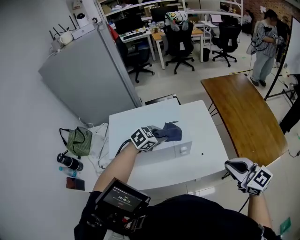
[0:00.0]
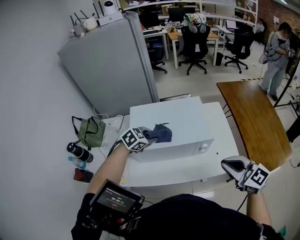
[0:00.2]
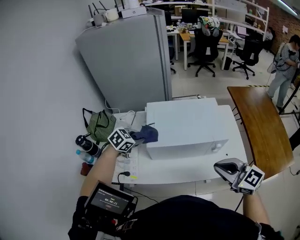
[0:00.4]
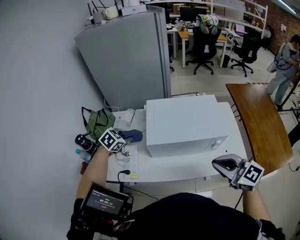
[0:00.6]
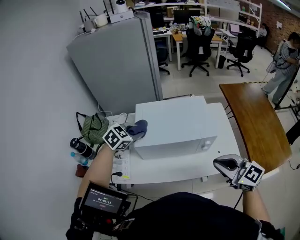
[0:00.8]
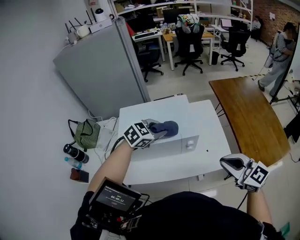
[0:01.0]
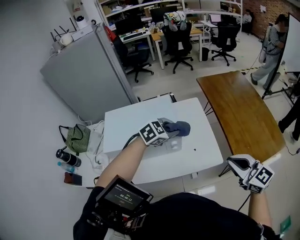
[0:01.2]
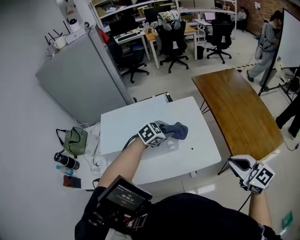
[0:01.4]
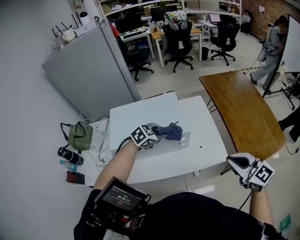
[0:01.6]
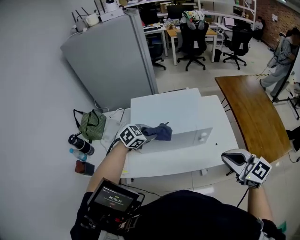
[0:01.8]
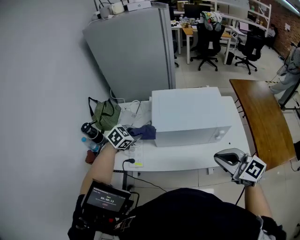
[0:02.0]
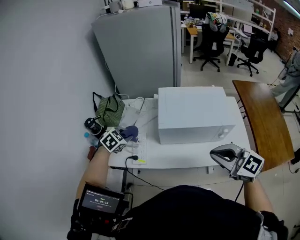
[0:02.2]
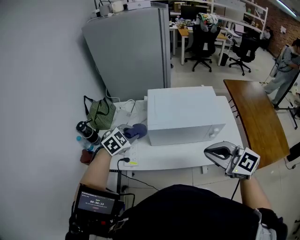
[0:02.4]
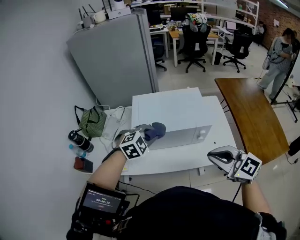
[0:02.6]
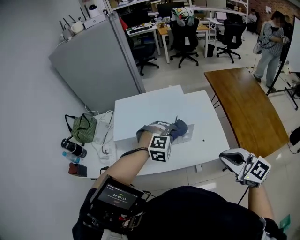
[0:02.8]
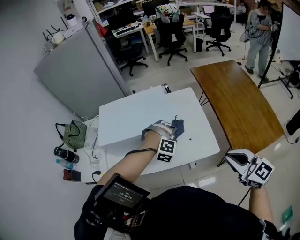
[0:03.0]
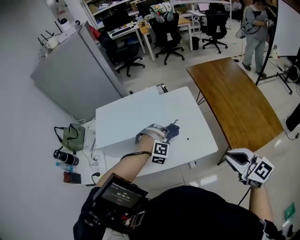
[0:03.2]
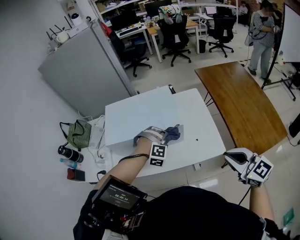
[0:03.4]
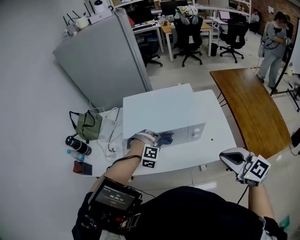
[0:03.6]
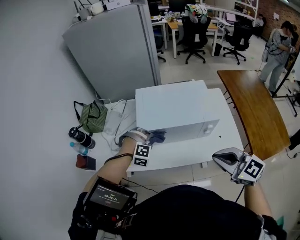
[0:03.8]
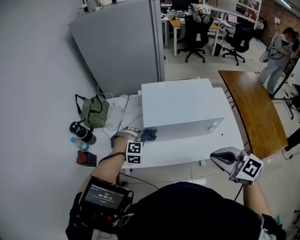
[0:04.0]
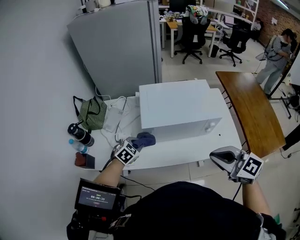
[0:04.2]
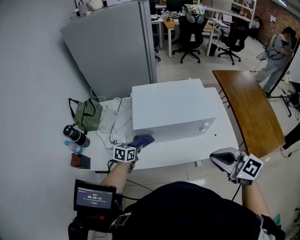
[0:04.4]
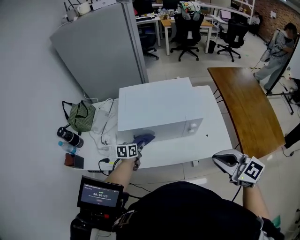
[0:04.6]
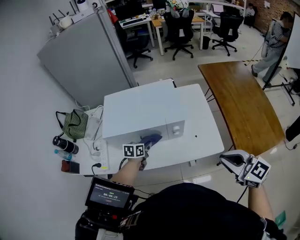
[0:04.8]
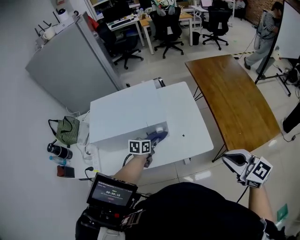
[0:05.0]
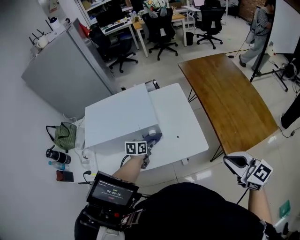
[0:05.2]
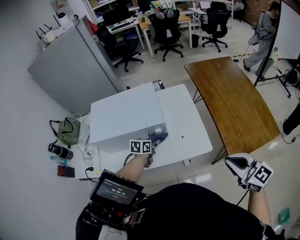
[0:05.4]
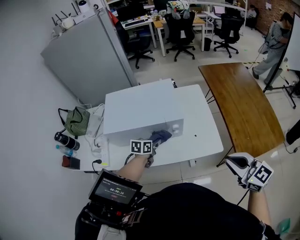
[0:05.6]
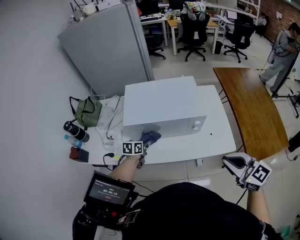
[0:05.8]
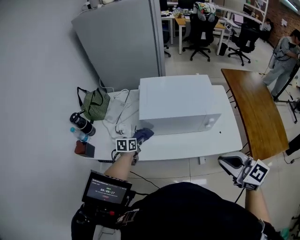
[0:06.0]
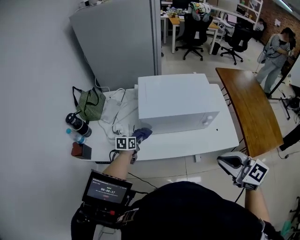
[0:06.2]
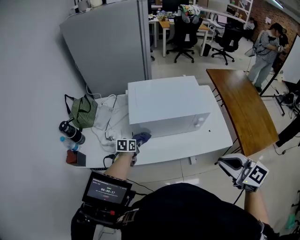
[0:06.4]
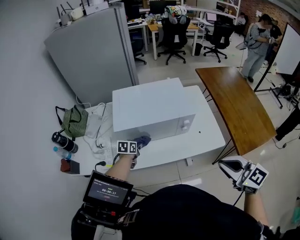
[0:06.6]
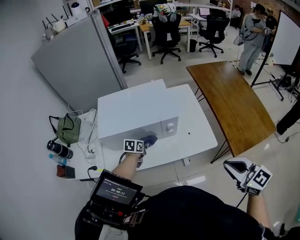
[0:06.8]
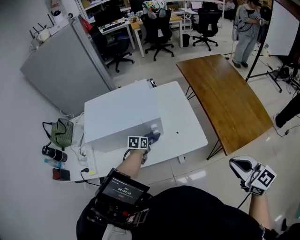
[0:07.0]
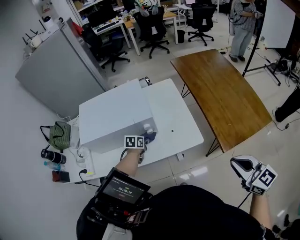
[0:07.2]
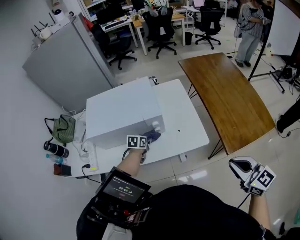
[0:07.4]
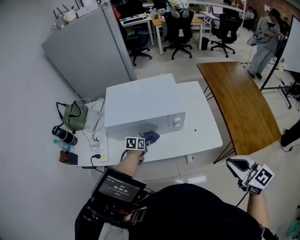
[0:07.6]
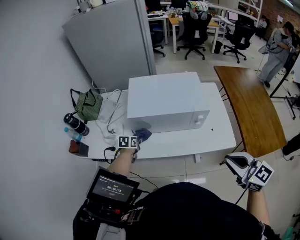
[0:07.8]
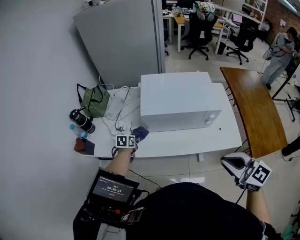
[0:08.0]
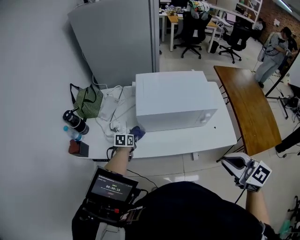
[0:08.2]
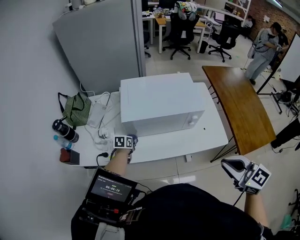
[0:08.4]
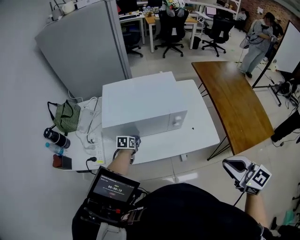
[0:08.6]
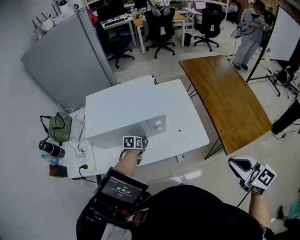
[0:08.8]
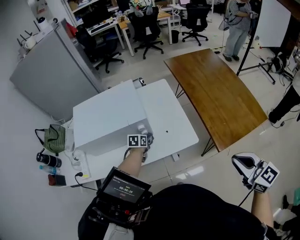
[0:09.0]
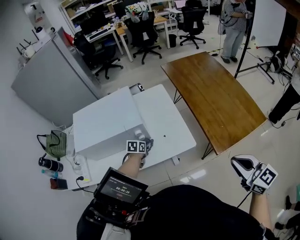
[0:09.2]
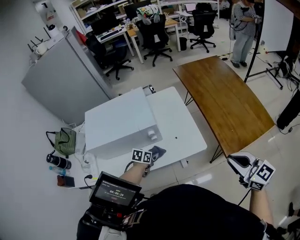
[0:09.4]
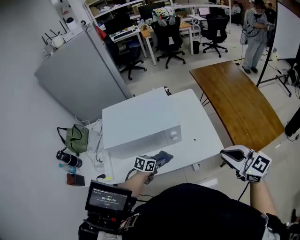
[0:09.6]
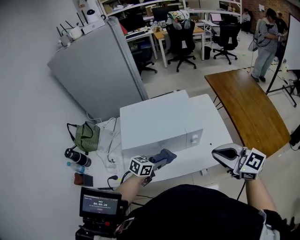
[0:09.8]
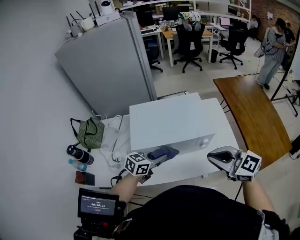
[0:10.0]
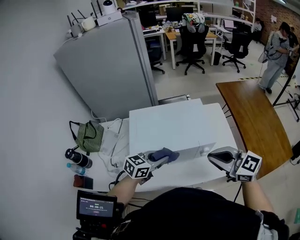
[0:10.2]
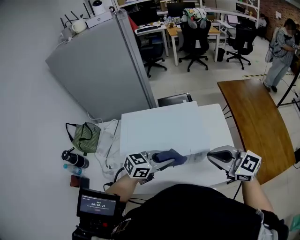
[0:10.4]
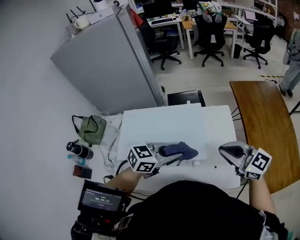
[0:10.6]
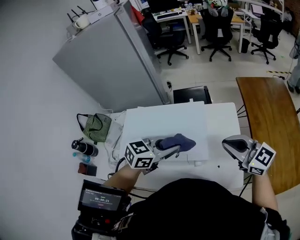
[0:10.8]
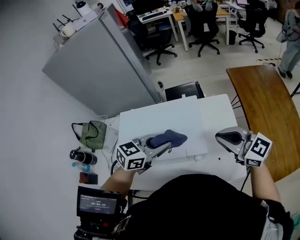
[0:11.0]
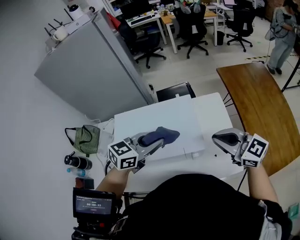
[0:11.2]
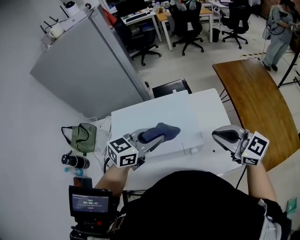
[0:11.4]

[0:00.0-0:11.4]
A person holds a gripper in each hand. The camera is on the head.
0:00.0 to 0:01.4: The left gripper reaches roughly 10 cm upward, then returns.
0:01.4 to 0:02.8: The left gripper twists about 40 degrees clockwise, seen from behind.
0:02.8 to 0:04.2: The right gripper travels to the left by roughly 20 cm. The left gripper goes roughly 35 cm to the left, and twists about 60 degrees counterclockwise, seen from behind.
0:04.2 to 0:05.6: The grippers both shift to the right by some 30 cm. The left gripper rolls counterclockwise, seen from behind, by some 40 degrees.
0:05.6 to 0:07.2: The left gripper heads downward, covering approximately 10 cm, and reaches roughly 30 cm to the left, then returns. The right gripper moves backward, approximately 5 cm, and reaches roughly 25 cm to the left, then returns.
0:07.2 to 0:08.6: The two grippers go approximately 20 cm to the left.
0:08.6 to 0:10.0: The left gripper shifts approximately 20 cm upward, goes to the right and returns, about 25 cm each way, and turns by roughly 40 degrees. The right gripper heads to the left and forward, covering some 20 cm.
0:10.0 to 0:11.4: The right gripper moves roughly 20 cm; the left gripper changes place by roughly 20 cm.

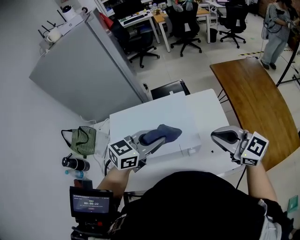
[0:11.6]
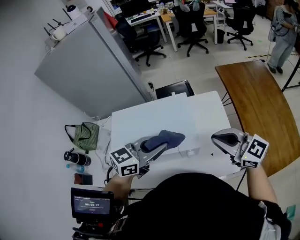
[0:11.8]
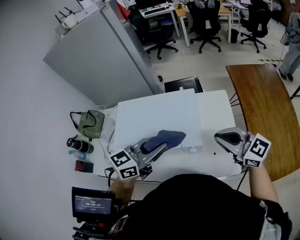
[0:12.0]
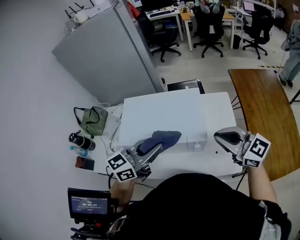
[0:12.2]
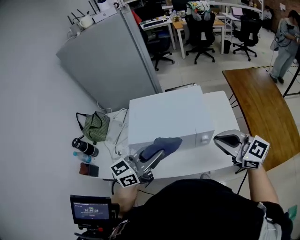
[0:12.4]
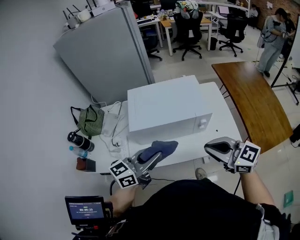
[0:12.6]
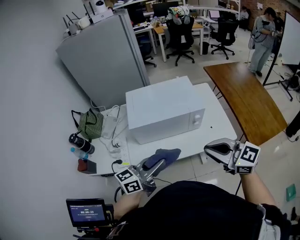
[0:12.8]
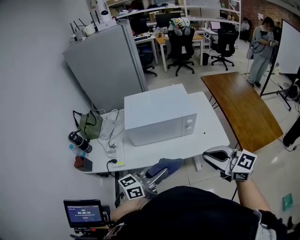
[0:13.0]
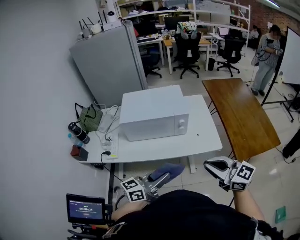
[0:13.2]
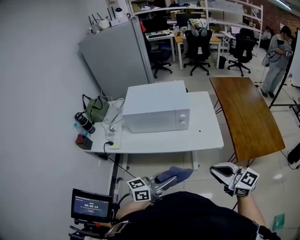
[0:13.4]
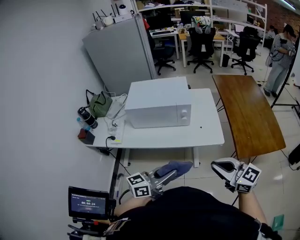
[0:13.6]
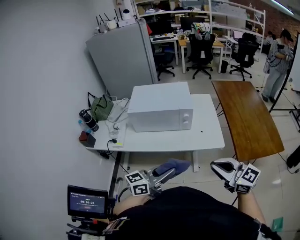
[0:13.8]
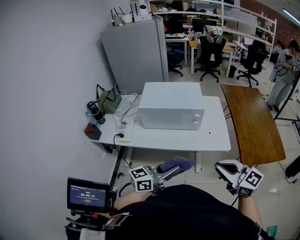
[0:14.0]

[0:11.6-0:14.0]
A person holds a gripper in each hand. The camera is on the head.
0:11.6 to 0:12.8: The two grippers go some 30 cm backward and to the left. The left gripper turns by roughly 30 degrees.
0:12.8 to 0:14.0: Both grippers travel together backward and to the right, roughly 20 cm.

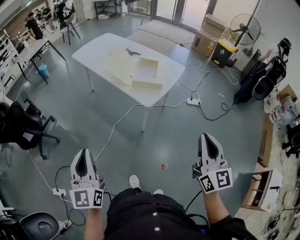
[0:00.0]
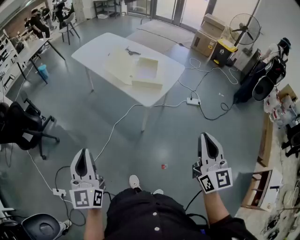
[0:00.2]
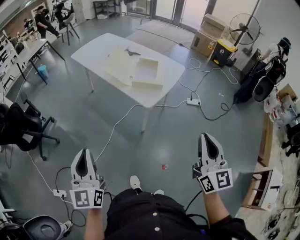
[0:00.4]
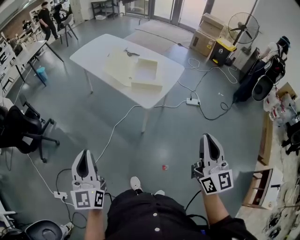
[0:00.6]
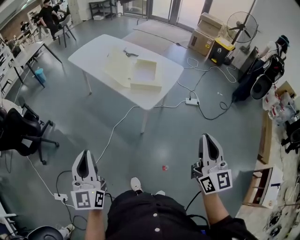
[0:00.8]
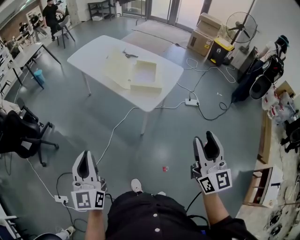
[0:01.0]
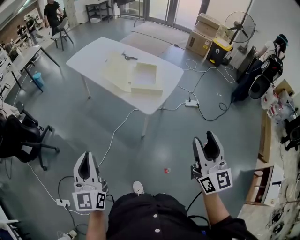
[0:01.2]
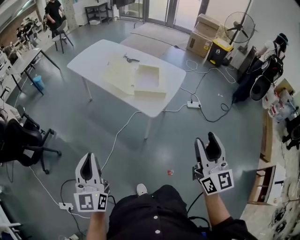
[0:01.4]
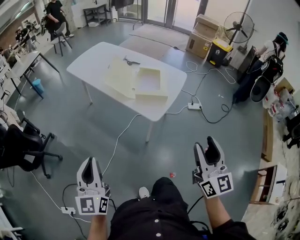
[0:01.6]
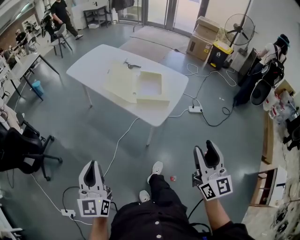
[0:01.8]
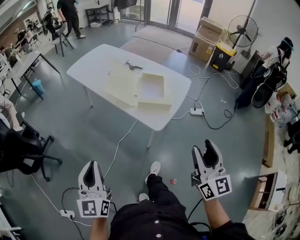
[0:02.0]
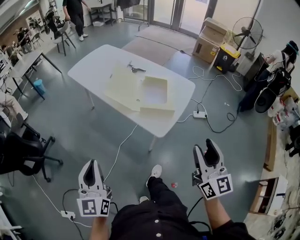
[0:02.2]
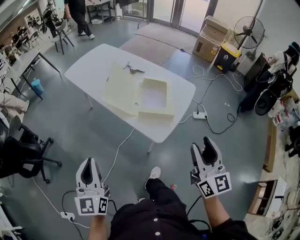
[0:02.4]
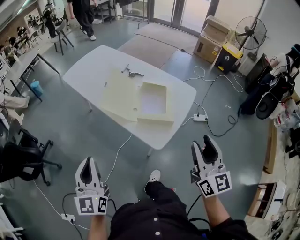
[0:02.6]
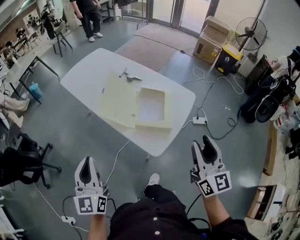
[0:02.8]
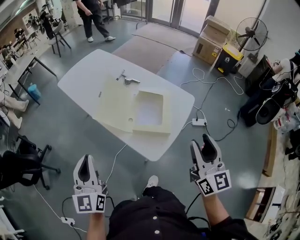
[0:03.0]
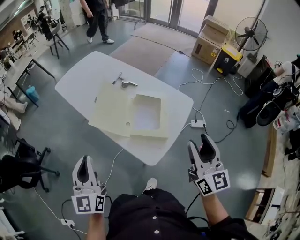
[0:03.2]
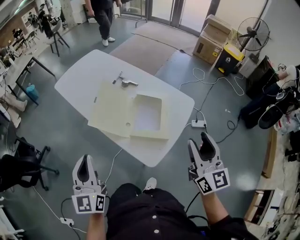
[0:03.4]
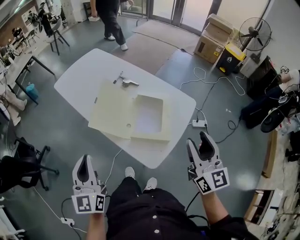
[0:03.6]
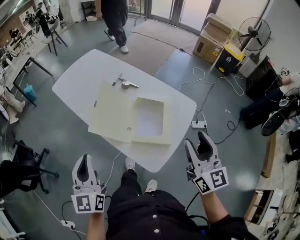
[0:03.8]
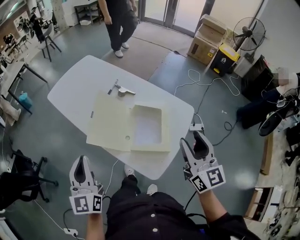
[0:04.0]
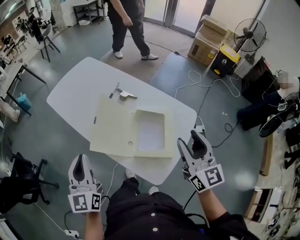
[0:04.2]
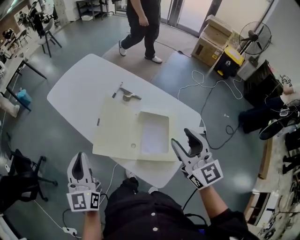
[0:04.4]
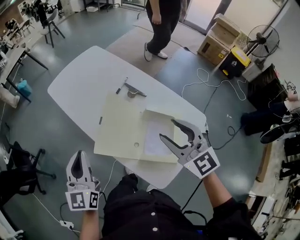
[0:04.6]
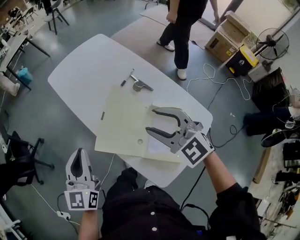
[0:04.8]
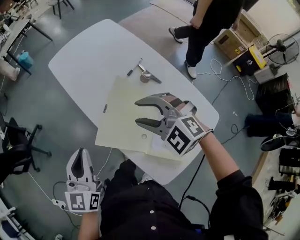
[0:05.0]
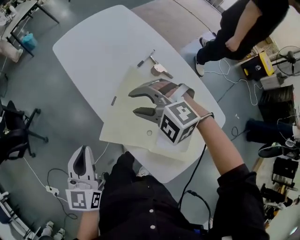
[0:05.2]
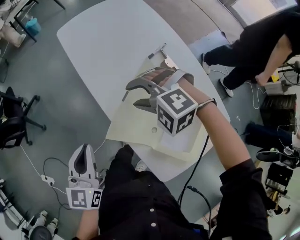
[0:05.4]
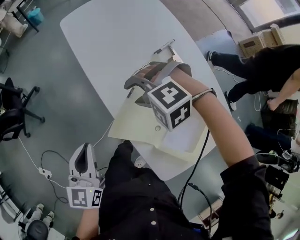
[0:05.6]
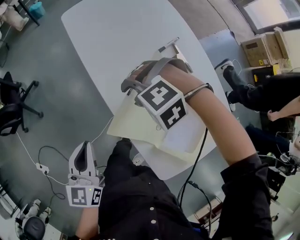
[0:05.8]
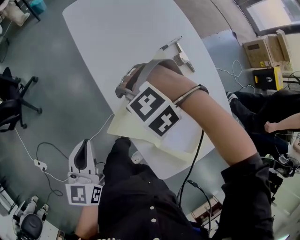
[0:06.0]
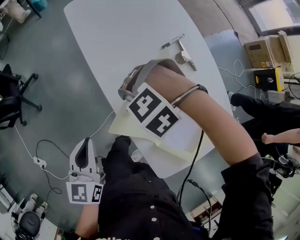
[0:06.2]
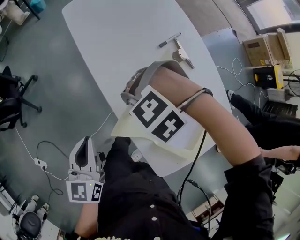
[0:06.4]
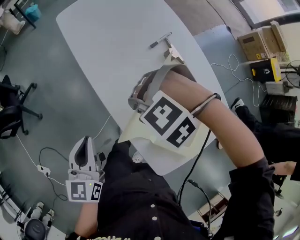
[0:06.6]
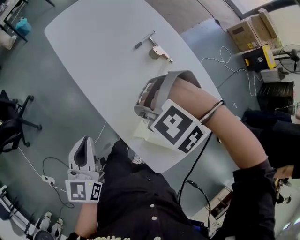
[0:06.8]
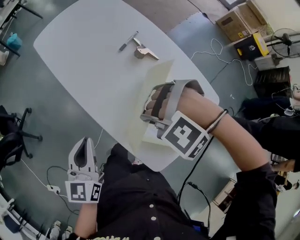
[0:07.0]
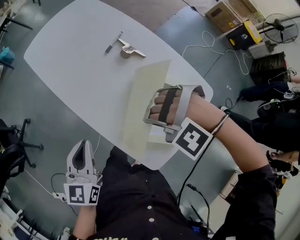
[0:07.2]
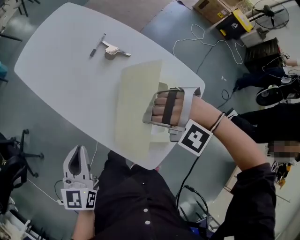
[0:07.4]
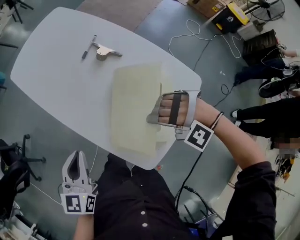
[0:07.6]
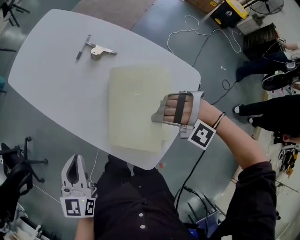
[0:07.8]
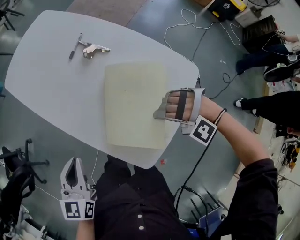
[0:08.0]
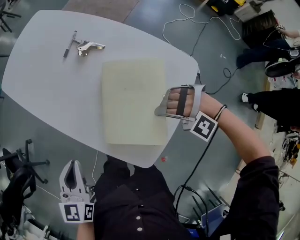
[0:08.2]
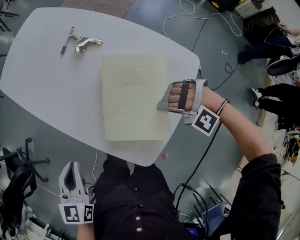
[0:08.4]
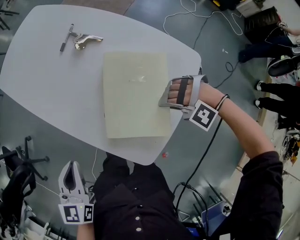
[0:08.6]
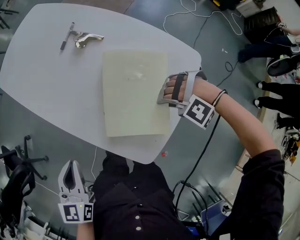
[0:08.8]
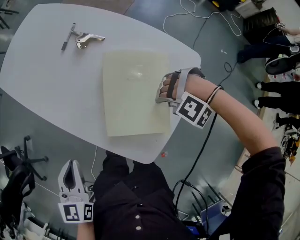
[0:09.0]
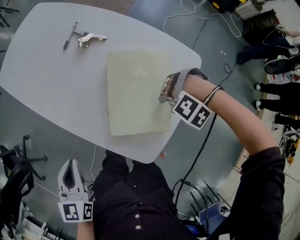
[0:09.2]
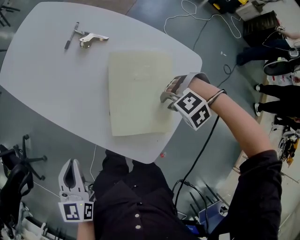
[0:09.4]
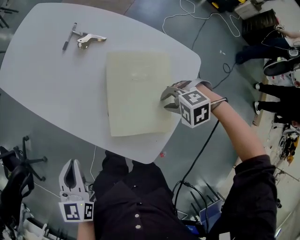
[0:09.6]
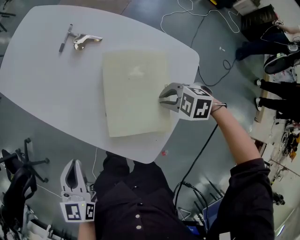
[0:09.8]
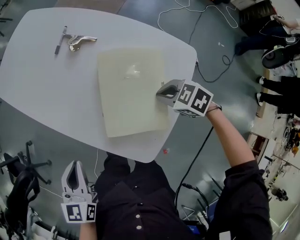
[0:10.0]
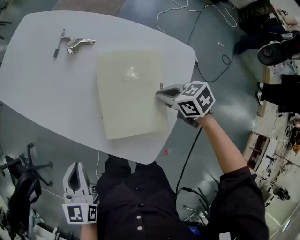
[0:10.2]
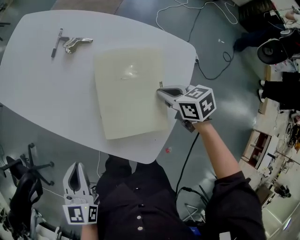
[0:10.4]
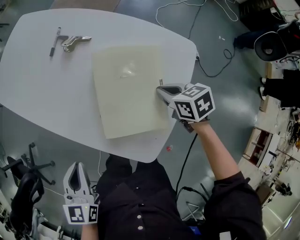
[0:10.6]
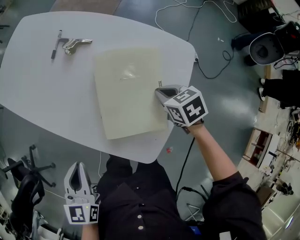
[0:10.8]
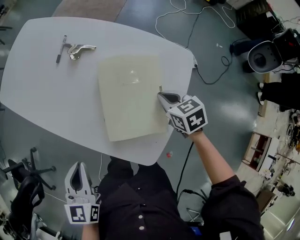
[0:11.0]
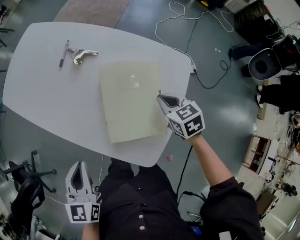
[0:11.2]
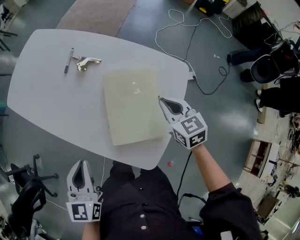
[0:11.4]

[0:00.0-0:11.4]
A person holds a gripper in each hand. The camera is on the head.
0:00.0 to 0:01.4: The two grippers go roughly 5 cm forward. The right gripper opens its fingers.
0:01.4 to 0:02.8: The two grippers go about 25 cm forward.
0:02.8 to 0:04.2: Both grippers move forward, roughly 20 cm.
0:04.2 to 0:05.6: The left gripper is displaced downward by about 15 cm, and rotates approximately 30 degrees; the right gripper moves about 40 cm, and angles its fingers downward, by approximately 60 degrees.
0:05.6 to 0:07.2: The left gripper moves about 10 cm, while the right gripper shifts by some 20 cm, and closes up.
0:07.2 to 0:08.6: The right gripper goes roughly 25 cm to the right, downward and backward. Meanwhile the left gripper moves backward, about 5 cm.
0:08.6 to 0:10.0: The right gripper rolls clockwise, seen from behind, by roughly 90 degrees, and opens, then closes once more.
0:10.0 to 0:11.4: The left gripper ends up roughly 5 cm from where it was; the right gripper travels upward by roughly 10 cm, and changes its angle by about 50 degrees.
